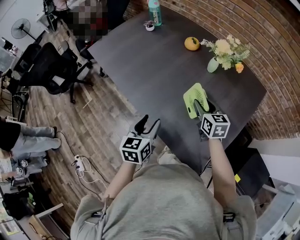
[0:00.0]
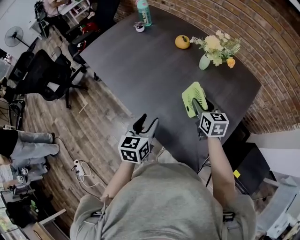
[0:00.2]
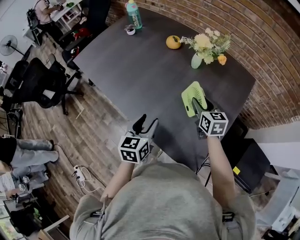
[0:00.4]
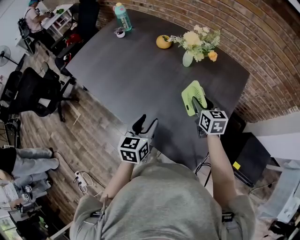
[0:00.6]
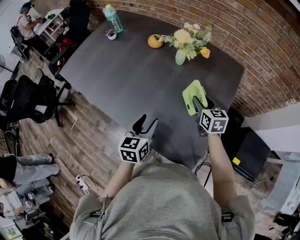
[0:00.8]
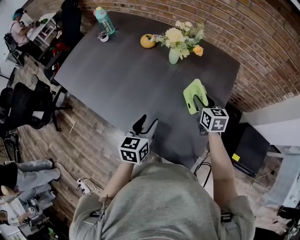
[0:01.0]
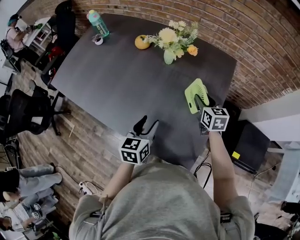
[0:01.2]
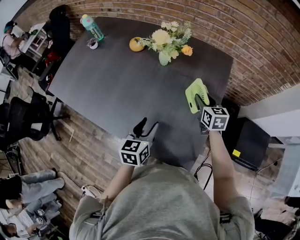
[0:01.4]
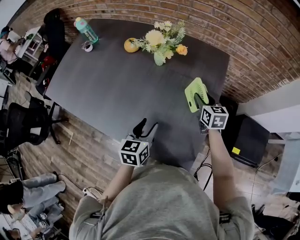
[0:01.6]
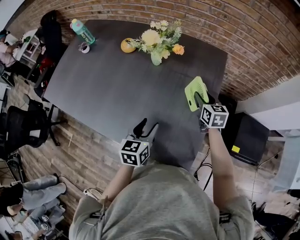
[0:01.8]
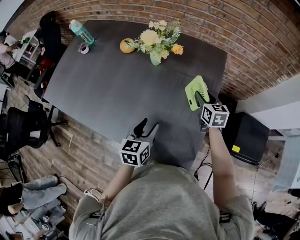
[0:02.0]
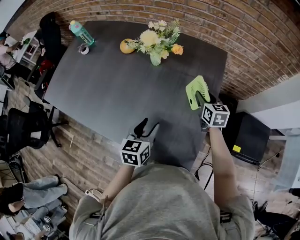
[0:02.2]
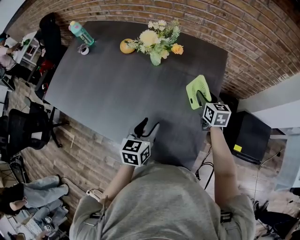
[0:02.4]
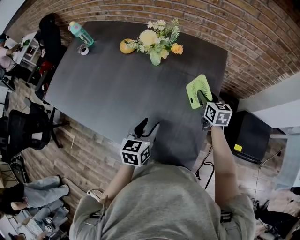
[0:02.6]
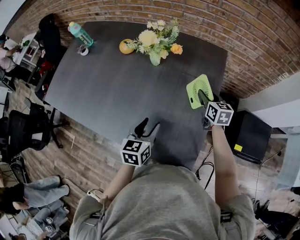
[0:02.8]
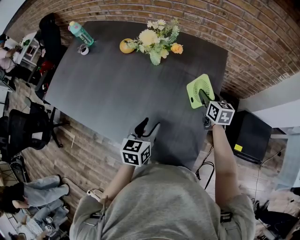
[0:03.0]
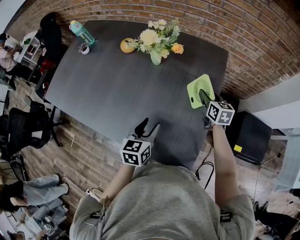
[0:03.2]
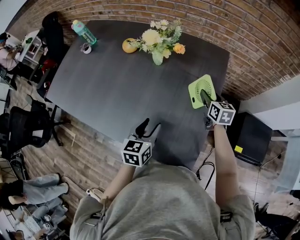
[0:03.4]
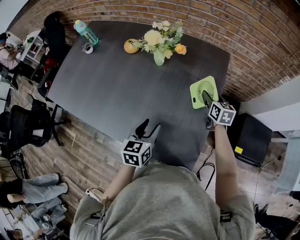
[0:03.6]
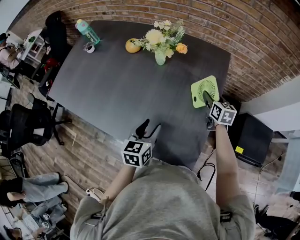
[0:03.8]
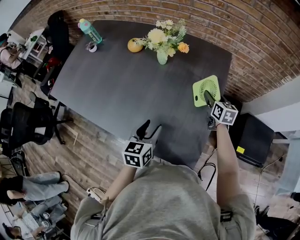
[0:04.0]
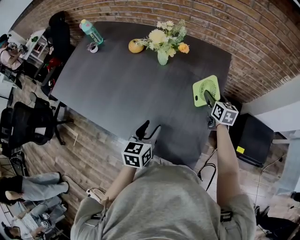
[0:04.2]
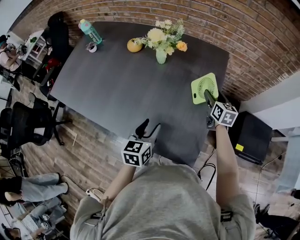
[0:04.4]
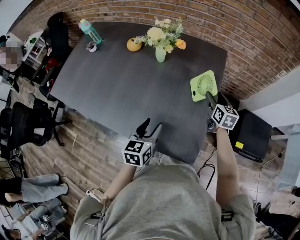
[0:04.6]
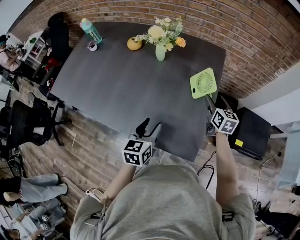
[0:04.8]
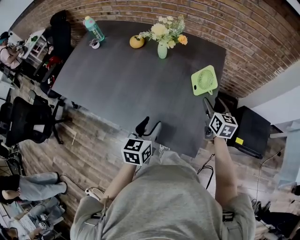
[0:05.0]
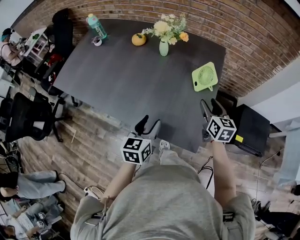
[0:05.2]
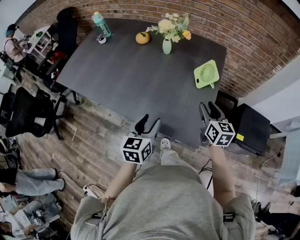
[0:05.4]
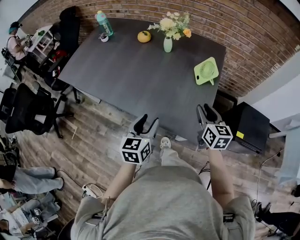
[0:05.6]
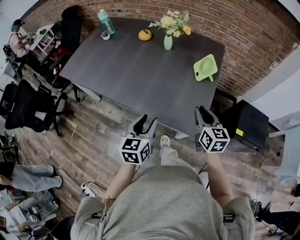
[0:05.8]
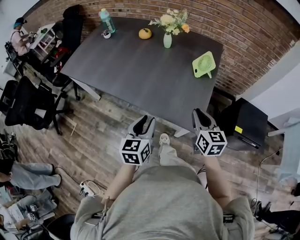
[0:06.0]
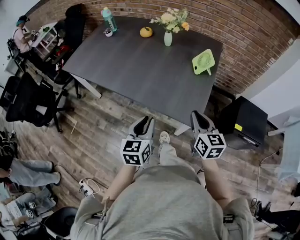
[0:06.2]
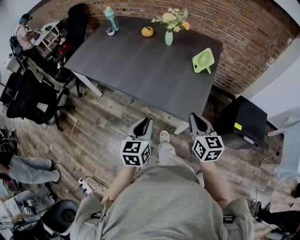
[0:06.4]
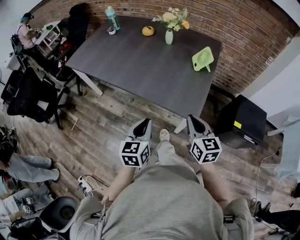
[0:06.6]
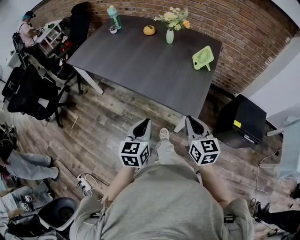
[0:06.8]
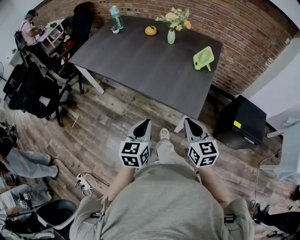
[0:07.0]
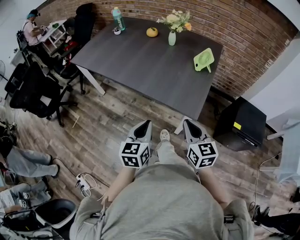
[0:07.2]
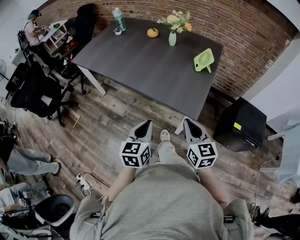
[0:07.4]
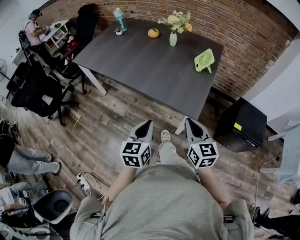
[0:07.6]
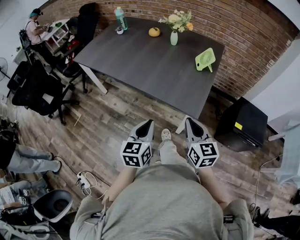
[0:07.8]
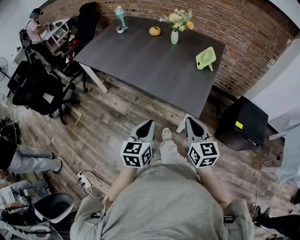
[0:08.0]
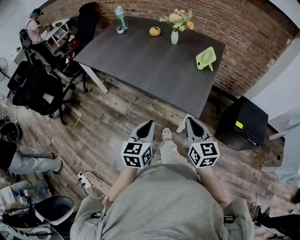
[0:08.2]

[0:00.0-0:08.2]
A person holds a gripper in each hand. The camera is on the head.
0:00.0 to 0:01.6: The right gripper ends up roughly 25 cm from where it was, and turns by some 30 degrees, while the left gripper shifts by some 15 cm, and swivels approximately 30 degrees.
0:01.6 to 0:03.2: The grippers stay close to where they were, moving slightly.
0:03.2 to 0:05.0: The two grippers go roughly 10 cm backward.
0:05.0 to 0:06.6: The grippers both shift backward by approximately 30 cm. The left gripper closes its fingers, while the right gripper closes.
0:06.6 to 0:08.2: The grippers both shift backward by approximately 5 cm.

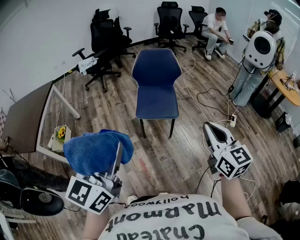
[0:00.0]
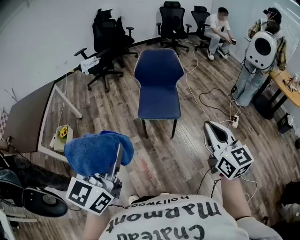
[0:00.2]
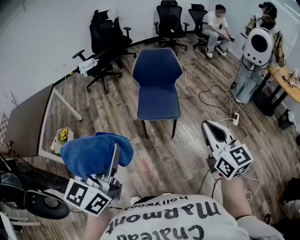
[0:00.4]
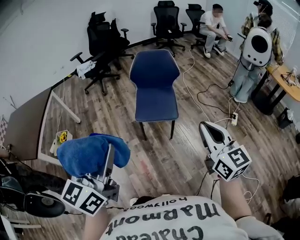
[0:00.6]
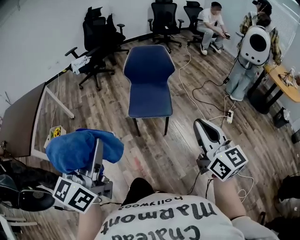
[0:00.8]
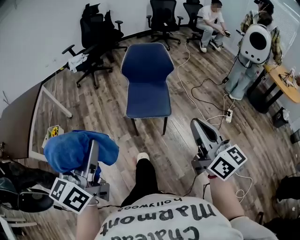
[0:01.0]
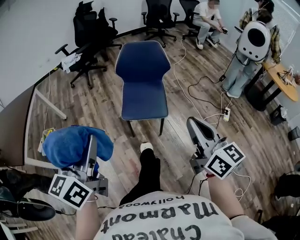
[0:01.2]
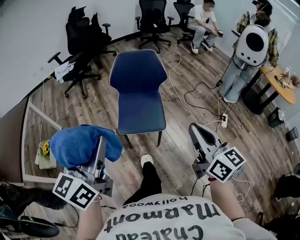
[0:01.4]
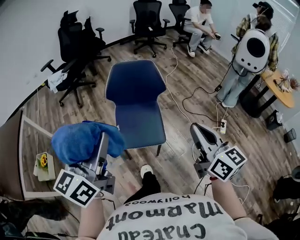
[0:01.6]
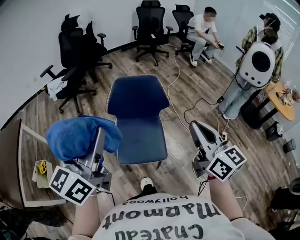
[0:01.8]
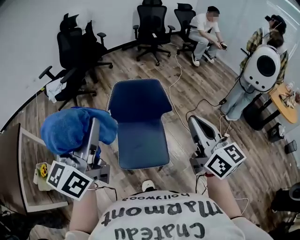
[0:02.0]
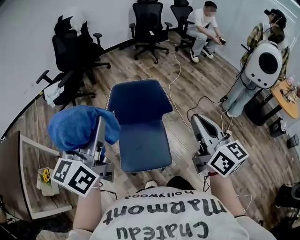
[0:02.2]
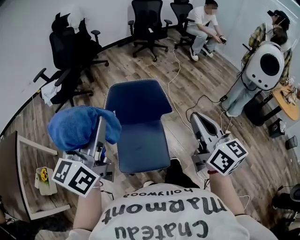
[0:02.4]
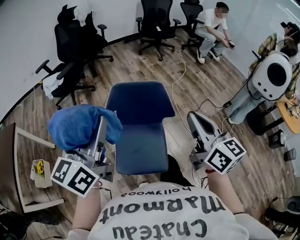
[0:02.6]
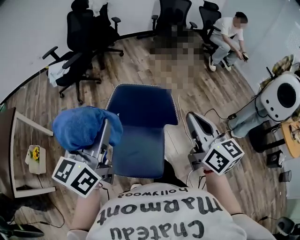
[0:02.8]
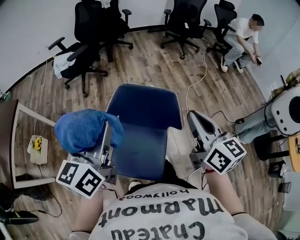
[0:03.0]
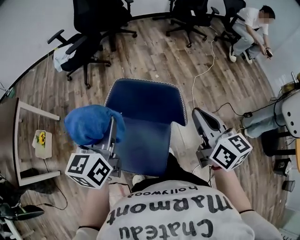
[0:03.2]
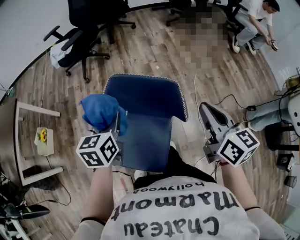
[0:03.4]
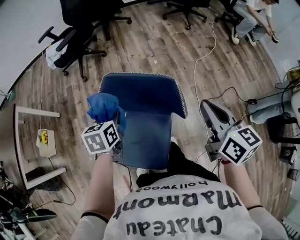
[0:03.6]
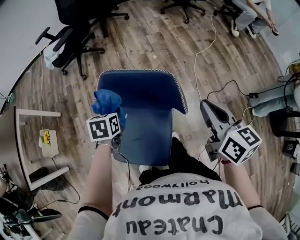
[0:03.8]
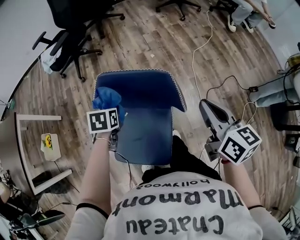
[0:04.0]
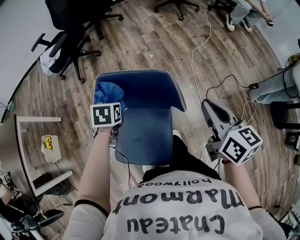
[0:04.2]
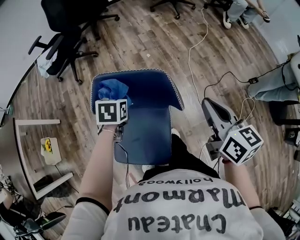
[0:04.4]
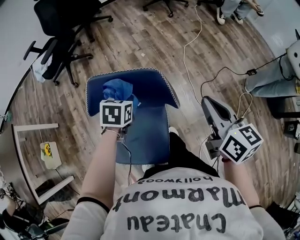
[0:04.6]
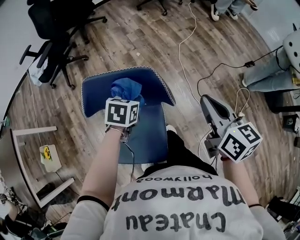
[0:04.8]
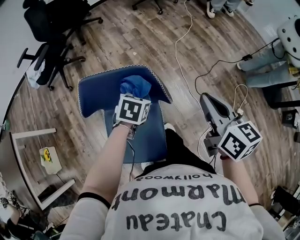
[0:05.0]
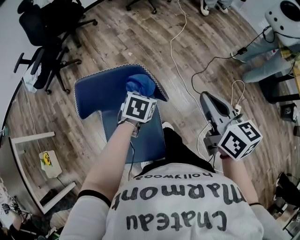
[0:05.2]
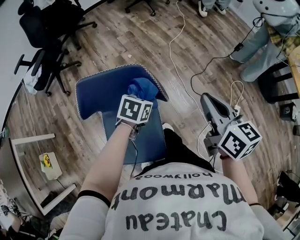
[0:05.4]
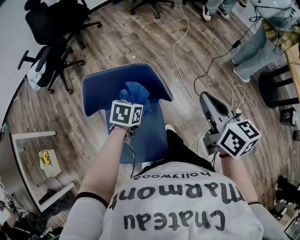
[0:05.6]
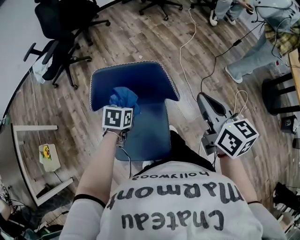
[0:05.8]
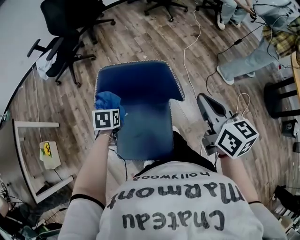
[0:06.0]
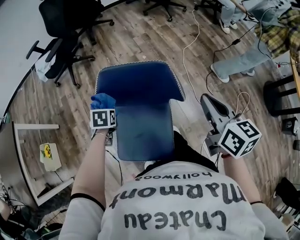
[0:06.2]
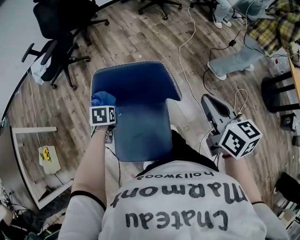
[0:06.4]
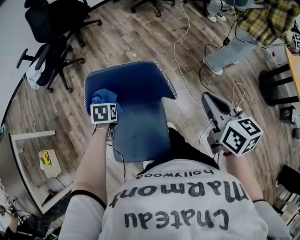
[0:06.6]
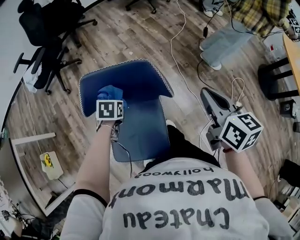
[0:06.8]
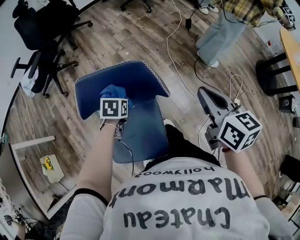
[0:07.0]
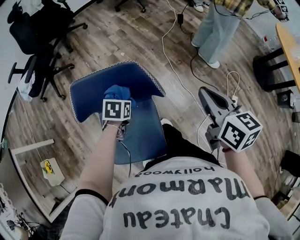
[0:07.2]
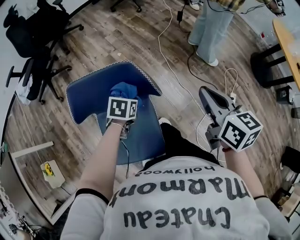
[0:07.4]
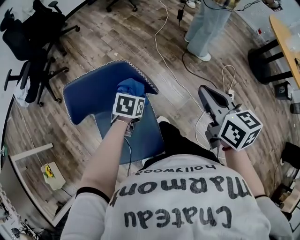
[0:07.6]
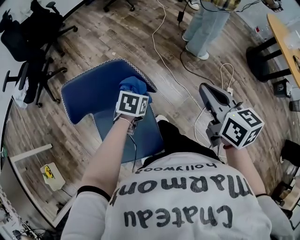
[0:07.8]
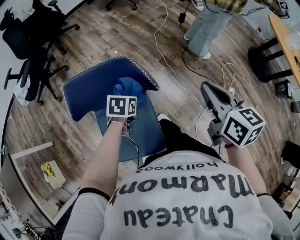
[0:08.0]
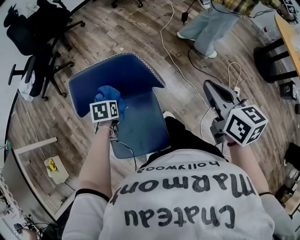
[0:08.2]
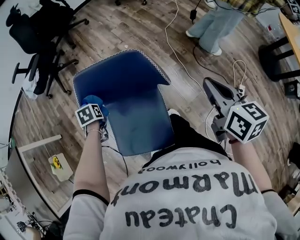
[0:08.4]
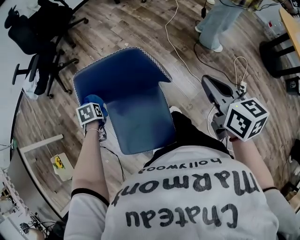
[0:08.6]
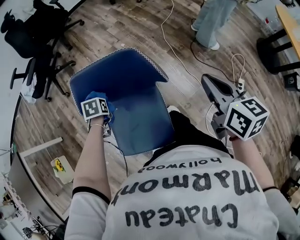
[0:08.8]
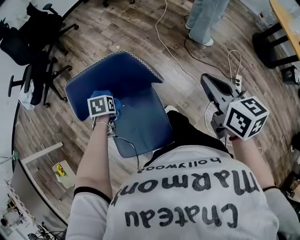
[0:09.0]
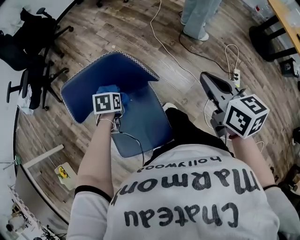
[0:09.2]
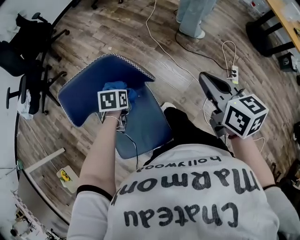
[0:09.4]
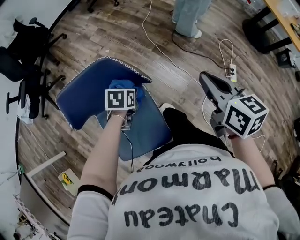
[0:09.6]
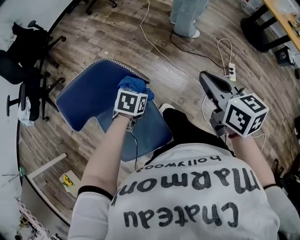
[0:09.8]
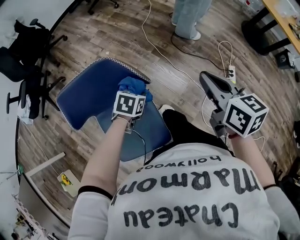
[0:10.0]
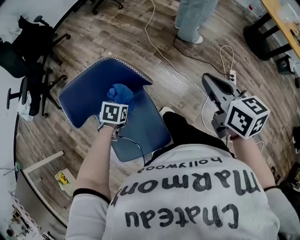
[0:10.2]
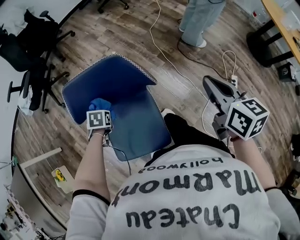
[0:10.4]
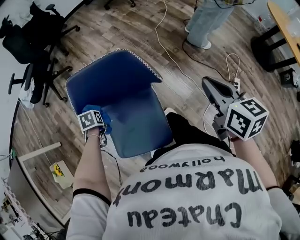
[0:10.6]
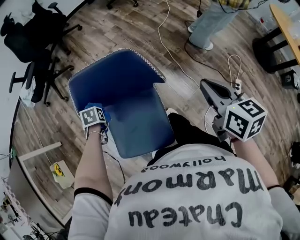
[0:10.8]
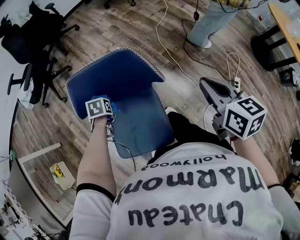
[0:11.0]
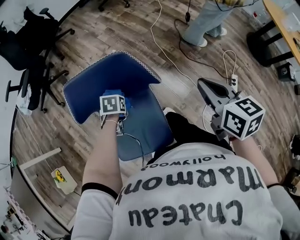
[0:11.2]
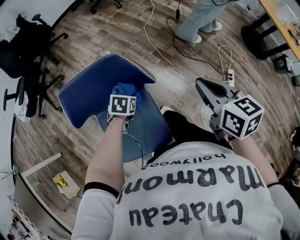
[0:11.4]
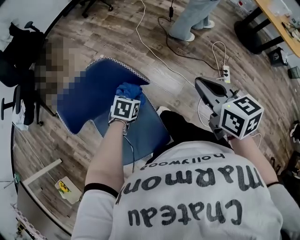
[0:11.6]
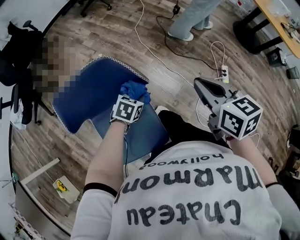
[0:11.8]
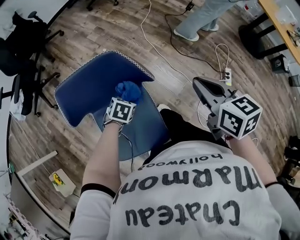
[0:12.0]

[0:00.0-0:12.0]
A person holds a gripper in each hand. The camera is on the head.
0:00.0 to 0:01.6: Both grippers travel together forward, about 30 cm.
0:01.6 to 0:03.0: The grippers both shift forward by approximately 35 cm. The left gripper swivels approximately 20 degrees.
0:03.0 to 0:04.4: The left gripper is displaced downward and forward by approximately 30 cm, and angles its fingers downward, by some 50 degrees. The right gripper is displaced downward and to the right by about 15 cm.
0:04.4 to 0:06.0: The right gripper moves roughly 5 cm.
0:06.0 to 0:07.6: The left gripper shifts by some 25 cm, and turns by approximately 30 degrees, while the right gripper shifts by approximately 10 cm.
0:07.6 to 0:09.0: The left gripper rotates some 30 degrees.
0:10.4 to 0:12.0: The left gripper swivels about 30 degrees.

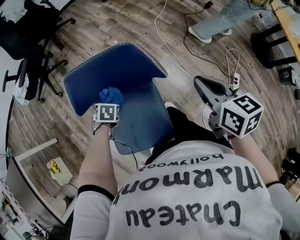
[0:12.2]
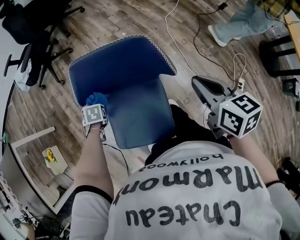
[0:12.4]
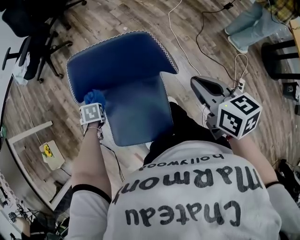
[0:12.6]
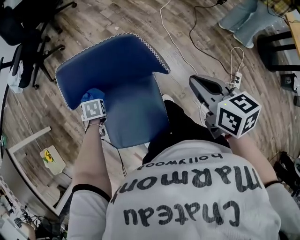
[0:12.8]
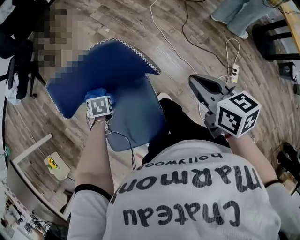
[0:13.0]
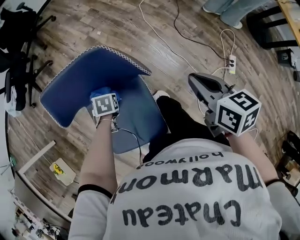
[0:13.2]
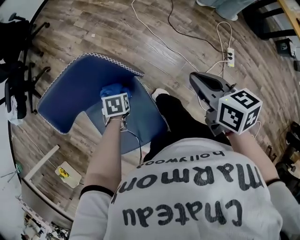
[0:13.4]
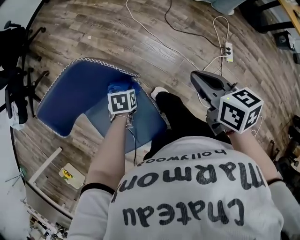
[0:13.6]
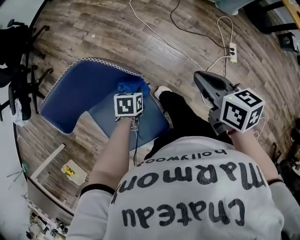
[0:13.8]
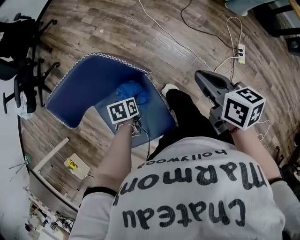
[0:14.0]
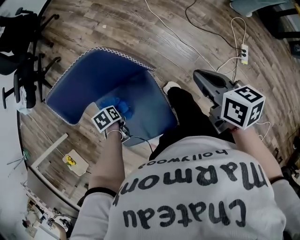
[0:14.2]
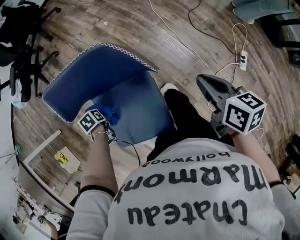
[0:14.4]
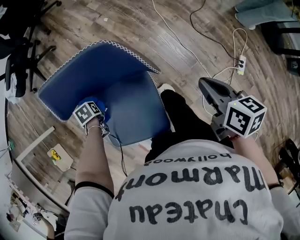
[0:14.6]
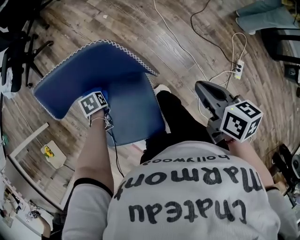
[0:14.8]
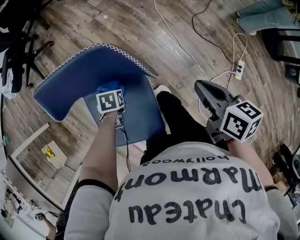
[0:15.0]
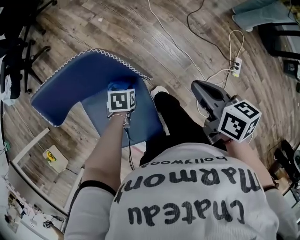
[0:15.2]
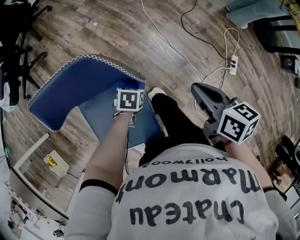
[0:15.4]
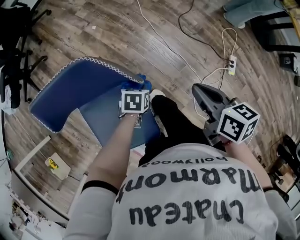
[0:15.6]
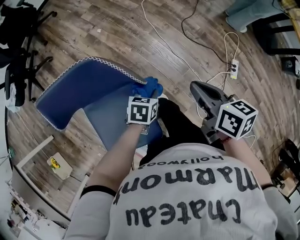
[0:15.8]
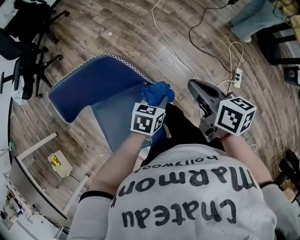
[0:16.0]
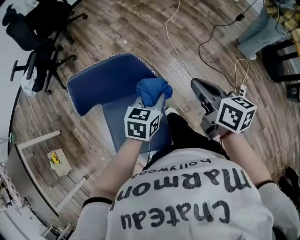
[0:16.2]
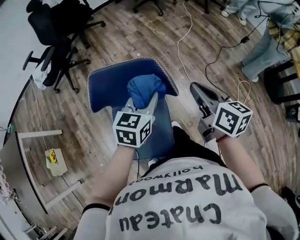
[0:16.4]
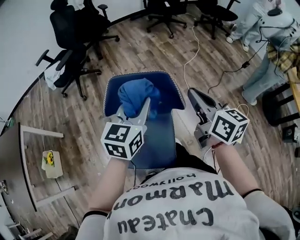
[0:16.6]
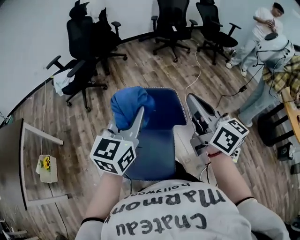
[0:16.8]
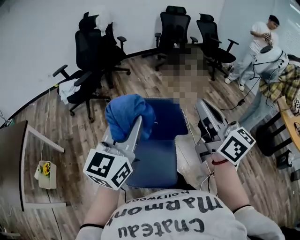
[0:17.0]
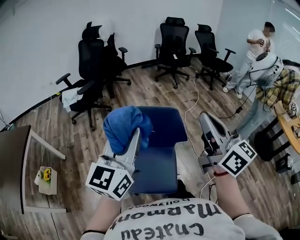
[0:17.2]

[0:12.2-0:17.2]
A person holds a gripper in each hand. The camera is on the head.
0:12.2 to 0:13.8: The right gripper moves some 15 cm, while the left gripper moves approximately 25 cm, and turns by some 20 degrees.
0:15.6 to 0:17.2: The two grippers go about 50 cm upward. The left gripper points its fingers about 70 degrees further upward. The right gripper angles its fingers upward, by about 50 degrees.
